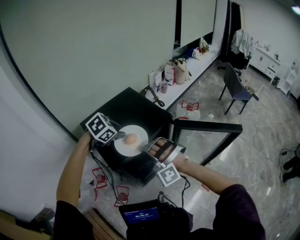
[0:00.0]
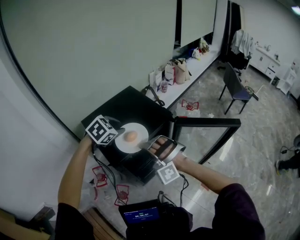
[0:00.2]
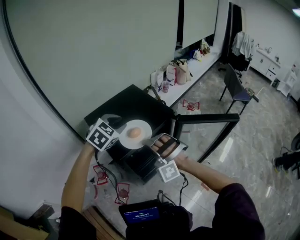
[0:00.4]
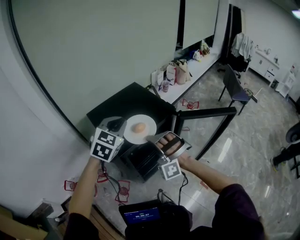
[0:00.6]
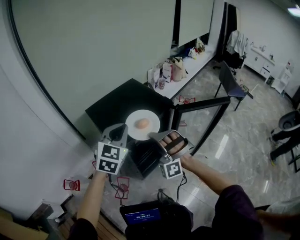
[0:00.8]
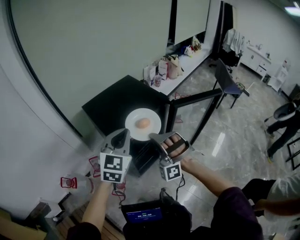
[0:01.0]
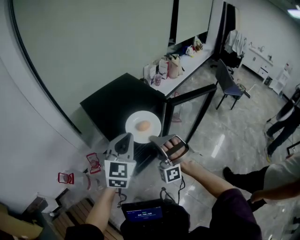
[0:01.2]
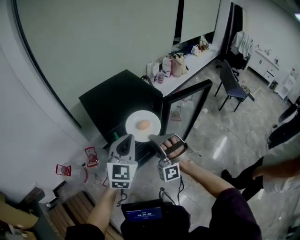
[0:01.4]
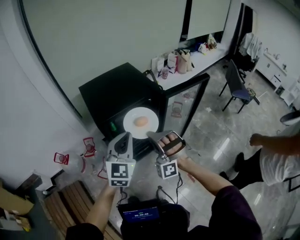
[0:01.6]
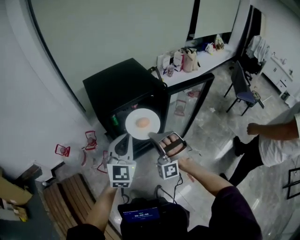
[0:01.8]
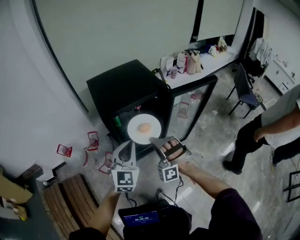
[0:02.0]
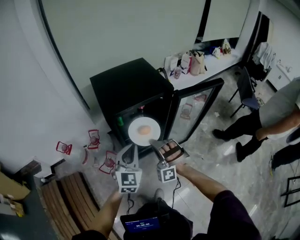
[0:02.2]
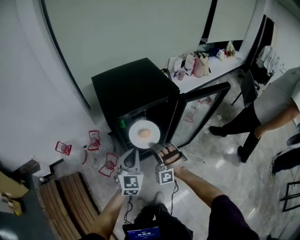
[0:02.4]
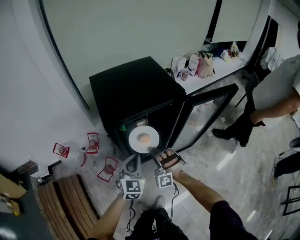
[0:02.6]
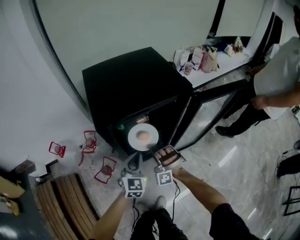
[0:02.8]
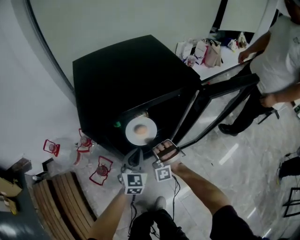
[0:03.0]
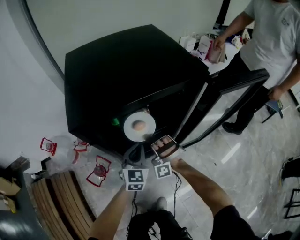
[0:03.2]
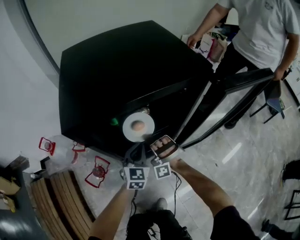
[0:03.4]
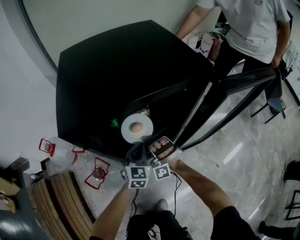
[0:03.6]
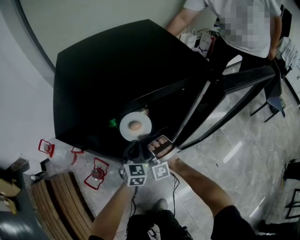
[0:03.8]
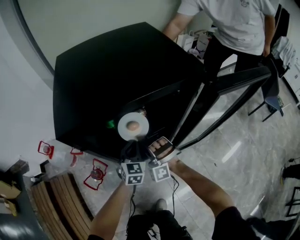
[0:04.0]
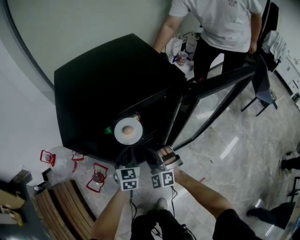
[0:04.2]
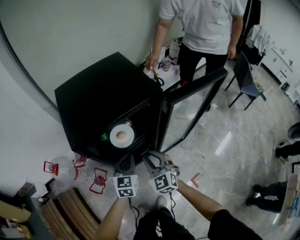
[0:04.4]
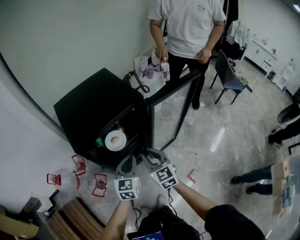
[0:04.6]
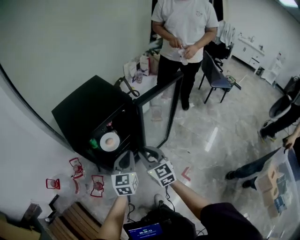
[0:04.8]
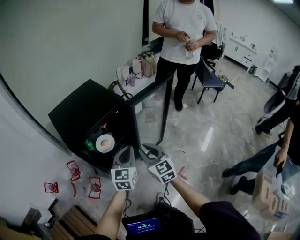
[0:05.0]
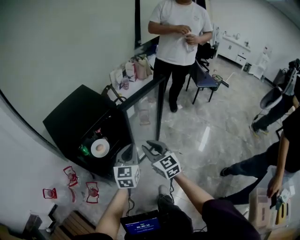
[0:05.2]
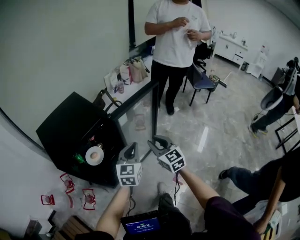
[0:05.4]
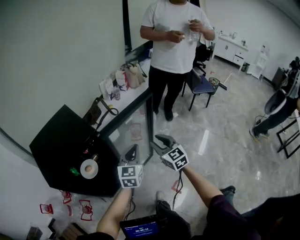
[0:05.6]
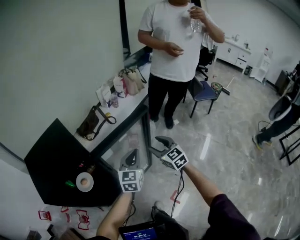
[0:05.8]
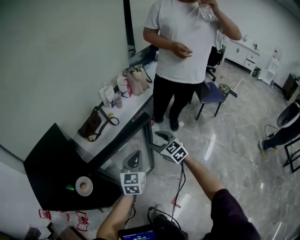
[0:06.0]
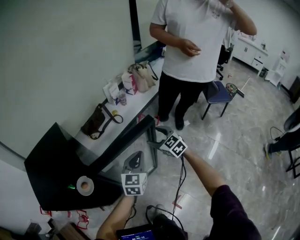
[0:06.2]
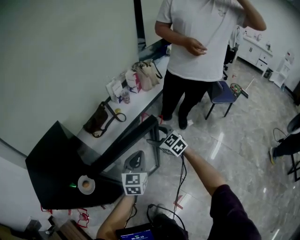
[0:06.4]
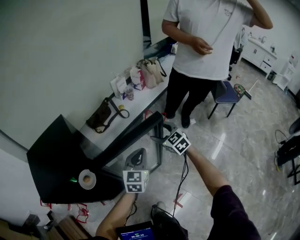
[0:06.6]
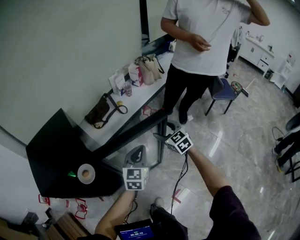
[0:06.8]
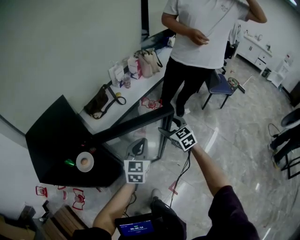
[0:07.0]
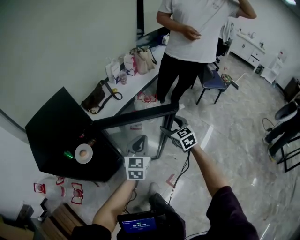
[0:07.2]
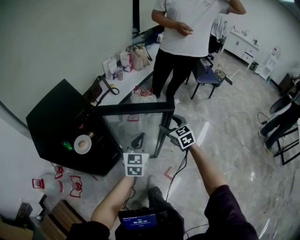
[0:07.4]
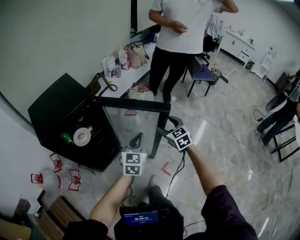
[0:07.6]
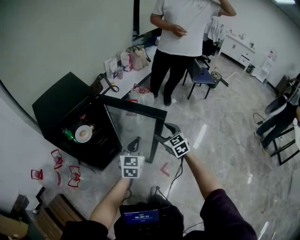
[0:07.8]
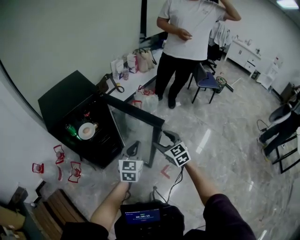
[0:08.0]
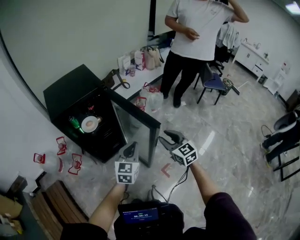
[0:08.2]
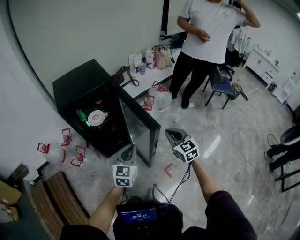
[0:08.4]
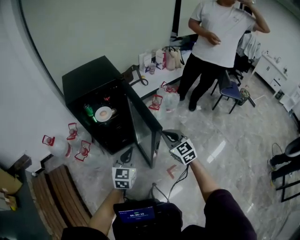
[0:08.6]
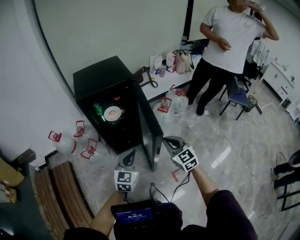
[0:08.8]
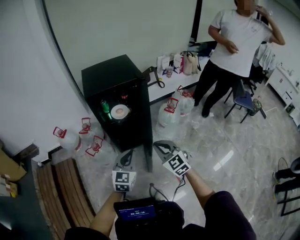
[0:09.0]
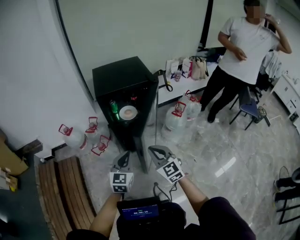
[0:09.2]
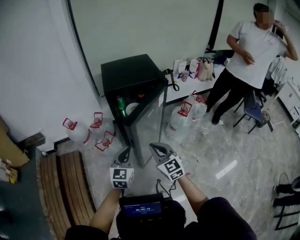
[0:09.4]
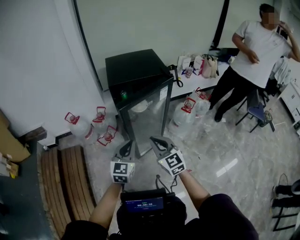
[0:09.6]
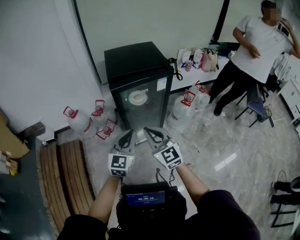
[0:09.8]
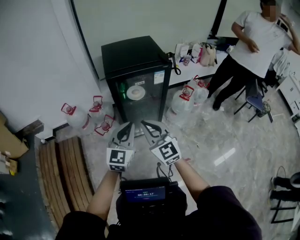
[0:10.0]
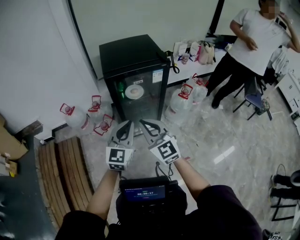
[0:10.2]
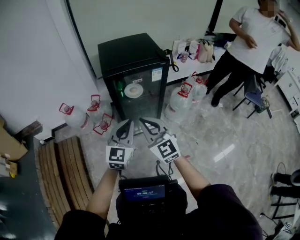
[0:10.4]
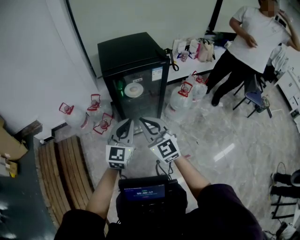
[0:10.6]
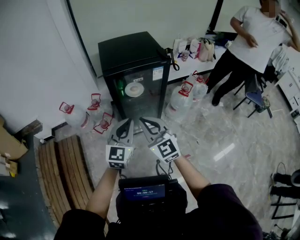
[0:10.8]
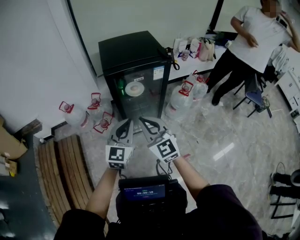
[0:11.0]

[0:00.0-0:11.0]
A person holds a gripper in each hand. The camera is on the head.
0:00.0 to 0:01.6: The left gripper shifts approximately 25 cm backward and to the right, tilts its fingers approximately 50 degrees upward, and closes up, while the right gripper travels backward and to the right by some 15 cm.
0:01.6 to 0:03.2: Both grippers travel together downward and forward, some 40 cm.
0:03.2 to 0:04.8: The right gripper goes approximately 35 cm upward, backward and to the right, and twists about 100 degrees clockwise, seen from behind. The left gripper heads upward and backward, covering about 30 cm, and changes its angle by some 20 degrees.
0:04.8 to 0:06.2: Both grippers are carried to the right and forward, roughly 50 cm. The right gripper opens its fingers.
0:06.2 to 0:07.8: Both grippers move backward, approximately 35 cm.
0:07.8 to 0:09.4: The right gripper changes place by roughly 35 cm, rotates about 40 degrees, and closes. Meanwhile the left gripper shifts by roughly 30 cm, and rotates some 30 degrees.
0:09.4 to 0:11.0: The right gripper moves upward and to the left, some 10 cm; the left gripper shifts about 5 cm upward.

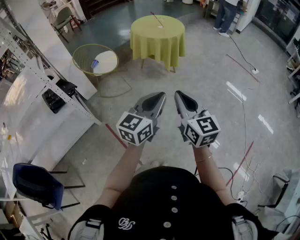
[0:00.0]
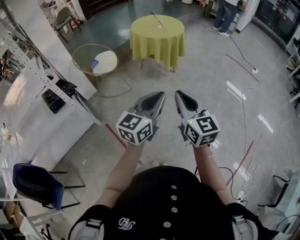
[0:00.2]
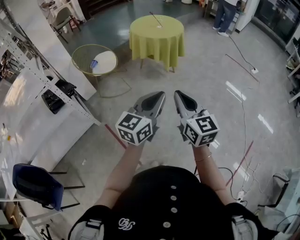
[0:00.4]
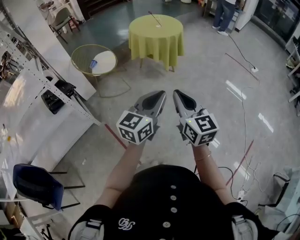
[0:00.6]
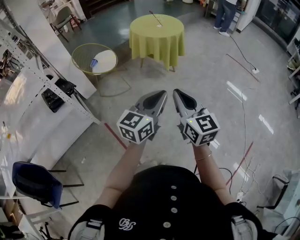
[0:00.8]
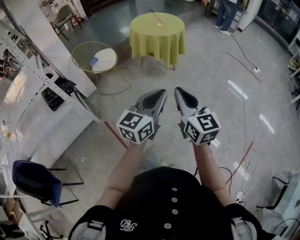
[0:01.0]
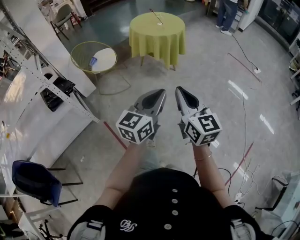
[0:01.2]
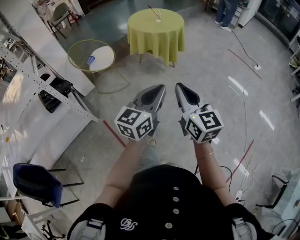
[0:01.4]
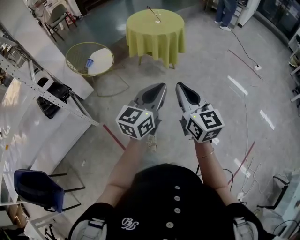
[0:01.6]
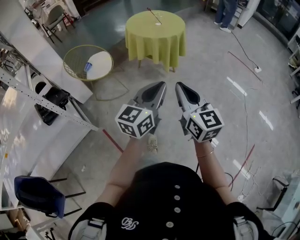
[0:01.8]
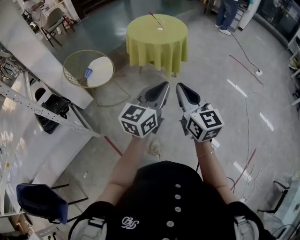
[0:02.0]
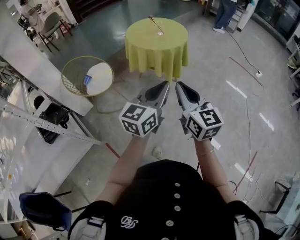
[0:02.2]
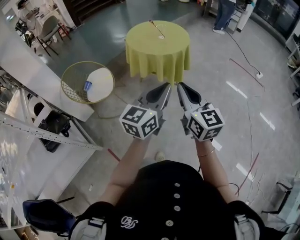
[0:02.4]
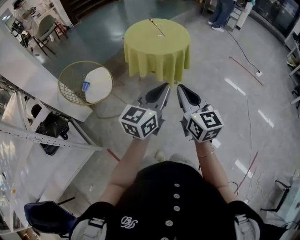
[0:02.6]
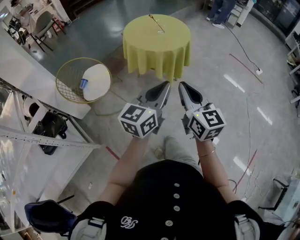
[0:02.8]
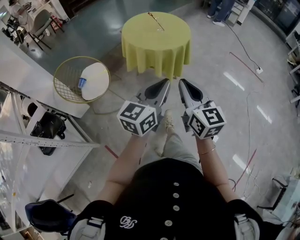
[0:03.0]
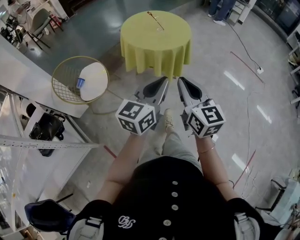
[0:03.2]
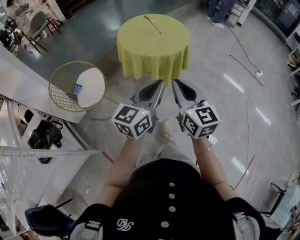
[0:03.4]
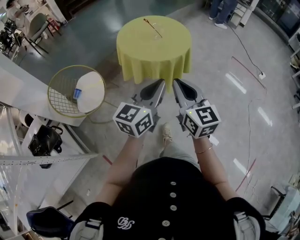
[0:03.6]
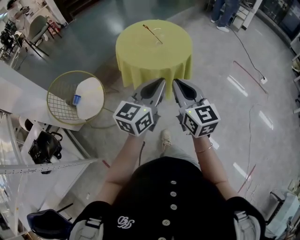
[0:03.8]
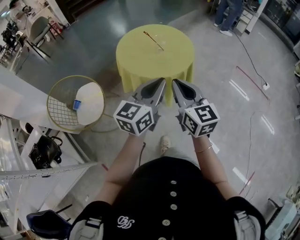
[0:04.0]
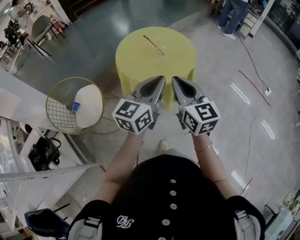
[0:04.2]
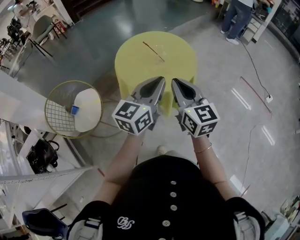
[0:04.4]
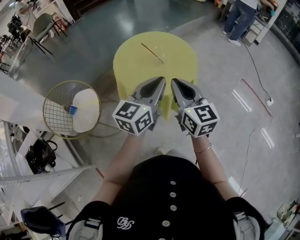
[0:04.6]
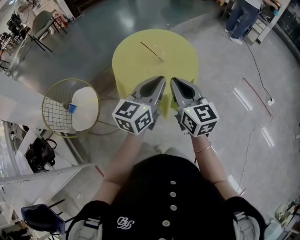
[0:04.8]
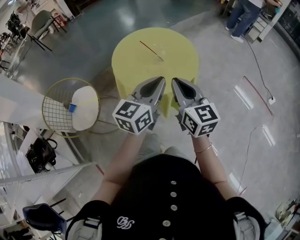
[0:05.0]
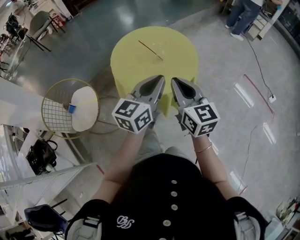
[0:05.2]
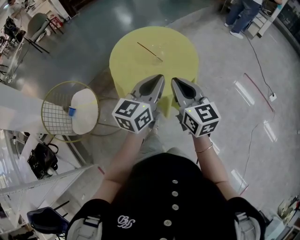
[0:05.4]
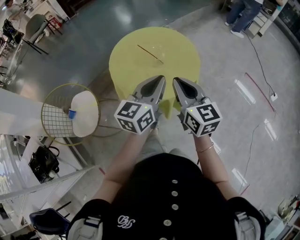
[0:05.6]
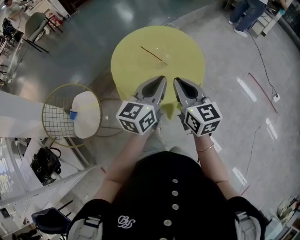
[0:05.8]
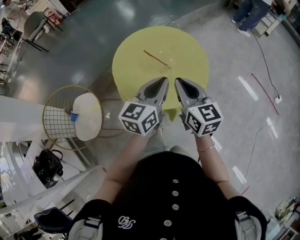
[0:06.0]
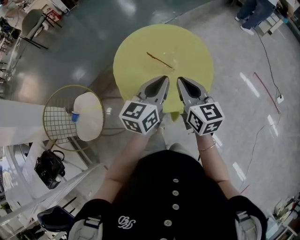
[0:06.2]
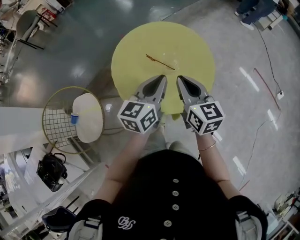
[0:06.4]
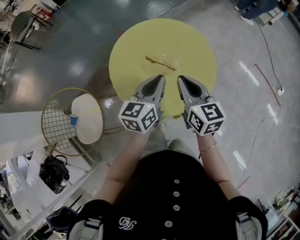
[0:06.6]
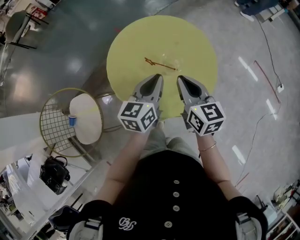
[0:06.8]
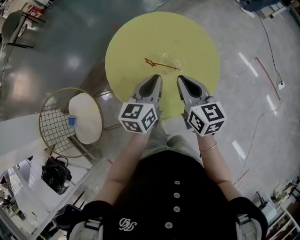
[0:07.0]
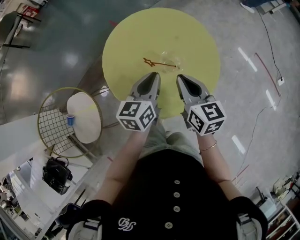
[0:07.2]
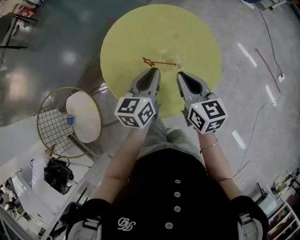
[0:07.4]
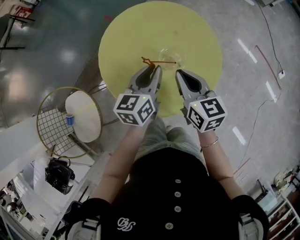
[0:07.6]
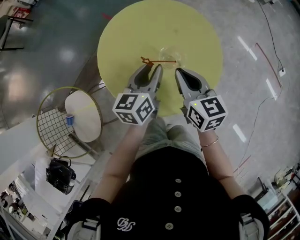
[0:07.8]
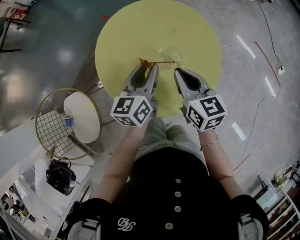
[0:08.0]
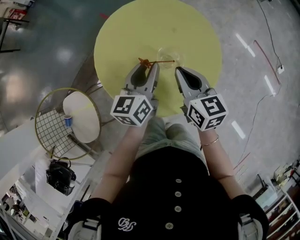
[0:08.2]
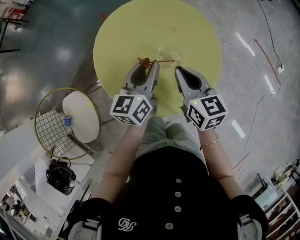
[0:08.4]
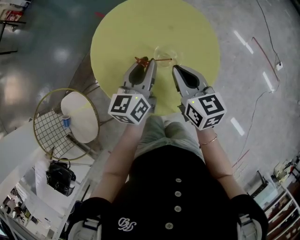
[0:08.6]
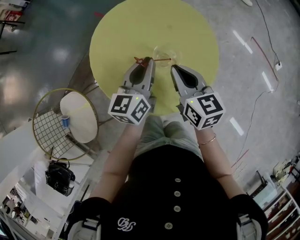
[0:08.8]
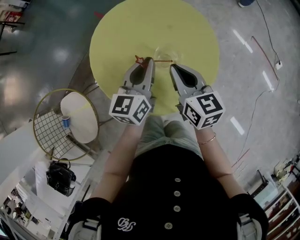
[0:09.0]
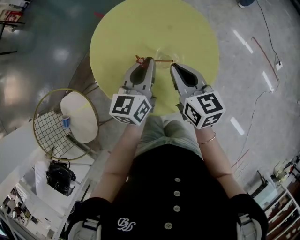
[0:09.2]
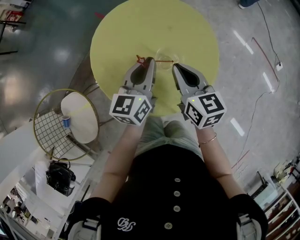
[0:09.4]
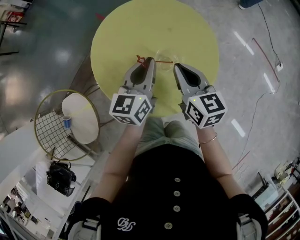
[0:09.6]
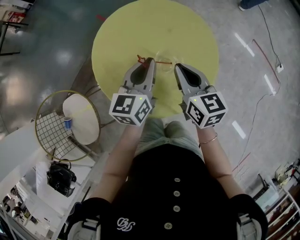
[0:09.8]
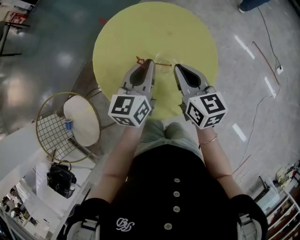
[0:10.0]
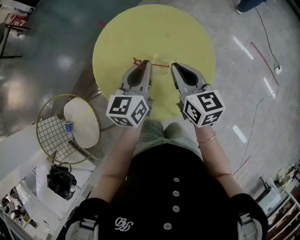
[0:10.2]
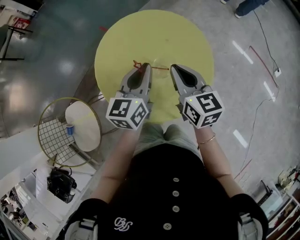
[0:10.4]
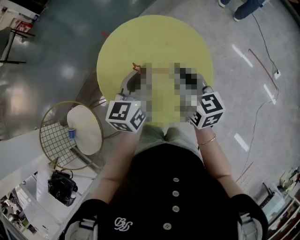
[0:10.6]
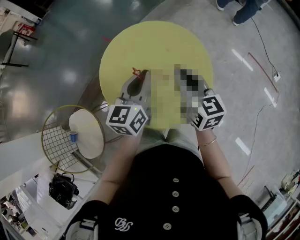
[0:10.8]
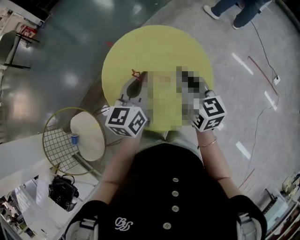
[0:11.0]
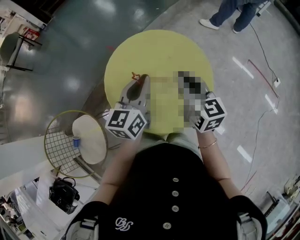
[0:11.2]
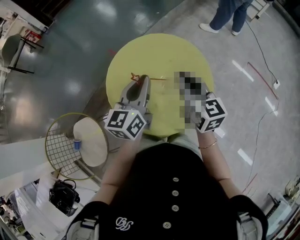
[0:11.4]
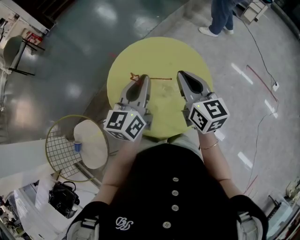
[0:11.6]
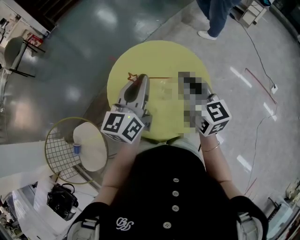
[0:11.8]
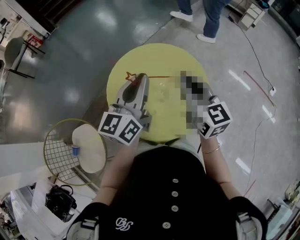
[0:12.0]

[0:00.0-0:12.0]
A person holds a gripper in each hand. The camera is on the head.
0:00.0 to 0:01.6: The grippers both shift forward by about 10 cm.
0:01.6 to 0:03.0: The grippers both shift forward by about 25 cm.
0:03.0 to 0:04.4: The grippers both shift forward by approximately 30 cm.
0:04.4 to 0:06.0: The two grippers go approximately 15 cm forward and downward.
0:06.0 to 0:07.6: Both grippers move forward and downward, roughly 15 cm.
0:07.6 to 0:10.4: The grippers move only a little.
0:10.4 to 0:12.0: Both grippers travel together upward, roughly 10 cm.

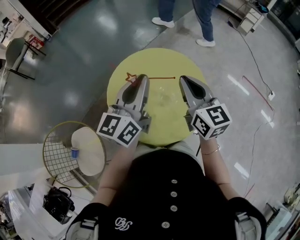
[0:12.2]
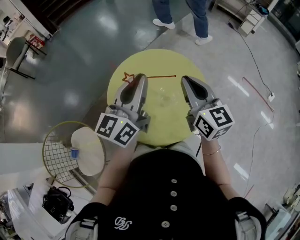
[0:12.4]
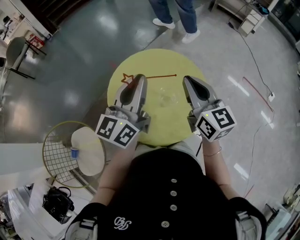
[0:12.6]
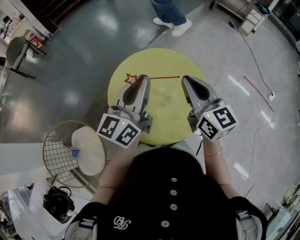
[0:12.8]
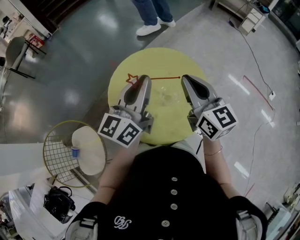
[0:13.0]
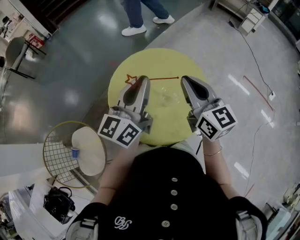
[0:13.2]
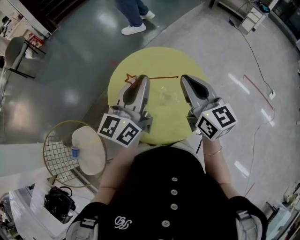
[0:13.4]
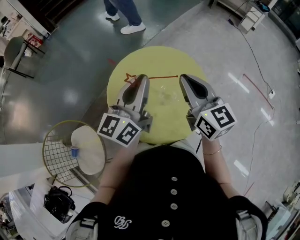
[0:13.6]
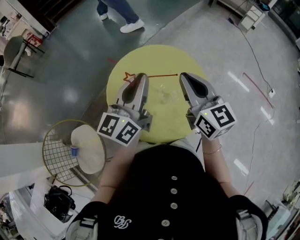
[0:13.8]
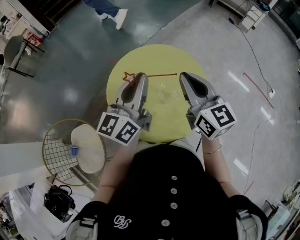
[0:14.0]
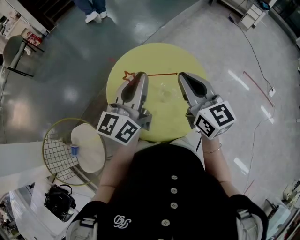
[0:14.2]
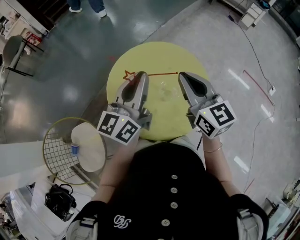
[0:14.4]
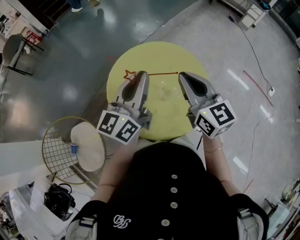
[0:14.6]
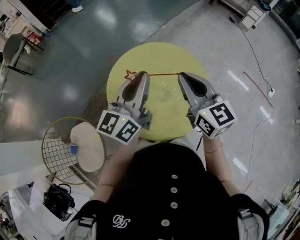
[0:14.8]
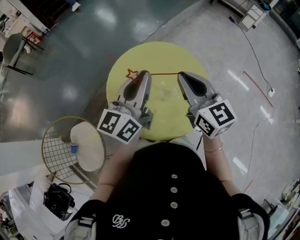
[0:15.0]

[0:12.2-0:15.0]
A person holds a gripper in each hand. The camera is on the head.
0:12.2 to 0:15.0: There are only small adjustments of the grippers.
